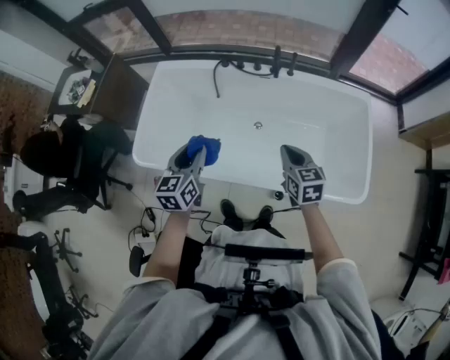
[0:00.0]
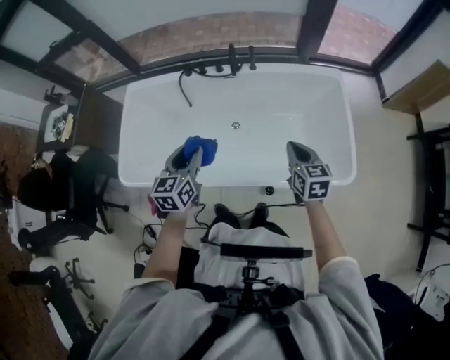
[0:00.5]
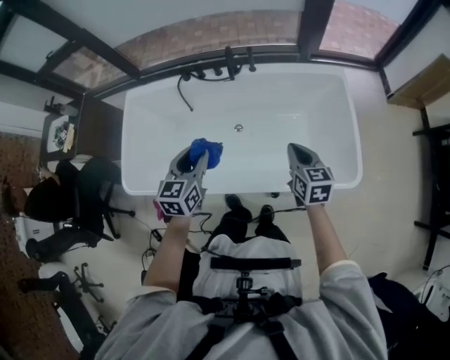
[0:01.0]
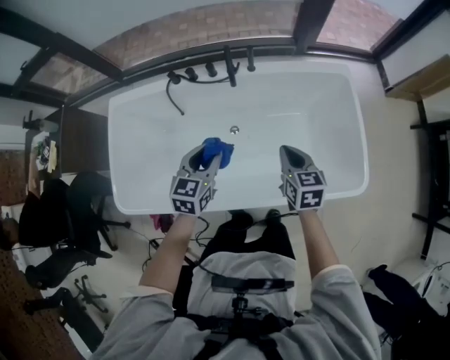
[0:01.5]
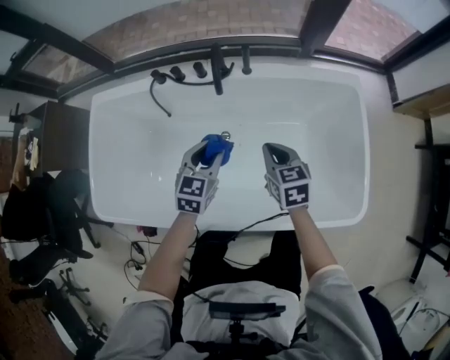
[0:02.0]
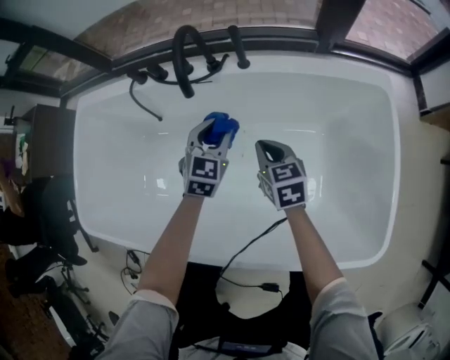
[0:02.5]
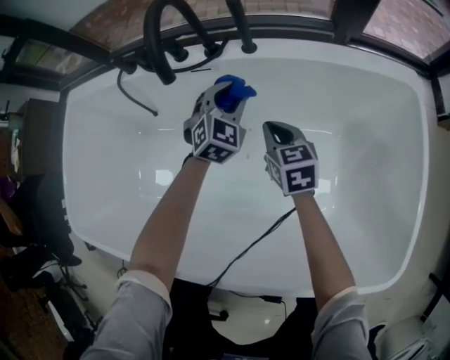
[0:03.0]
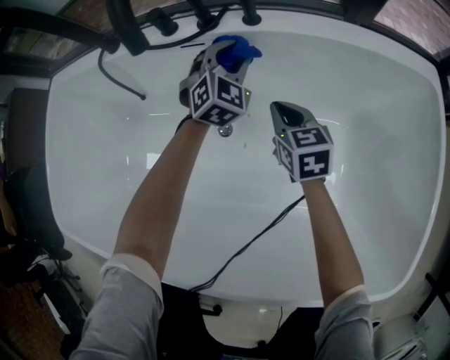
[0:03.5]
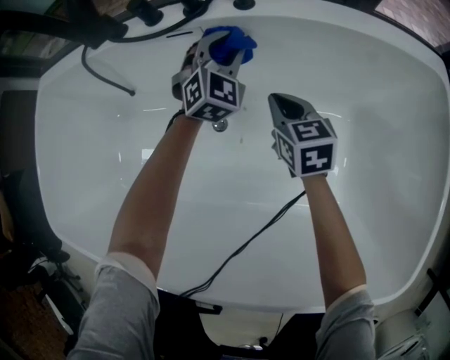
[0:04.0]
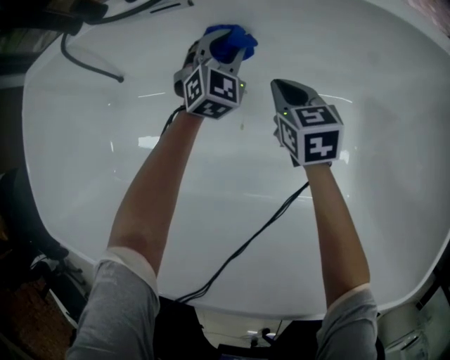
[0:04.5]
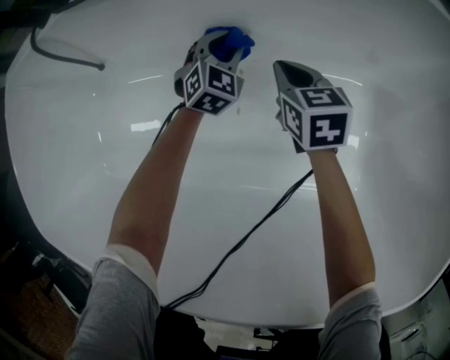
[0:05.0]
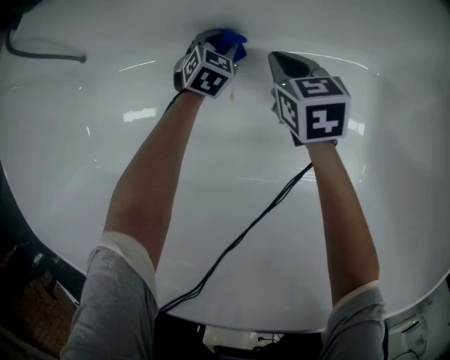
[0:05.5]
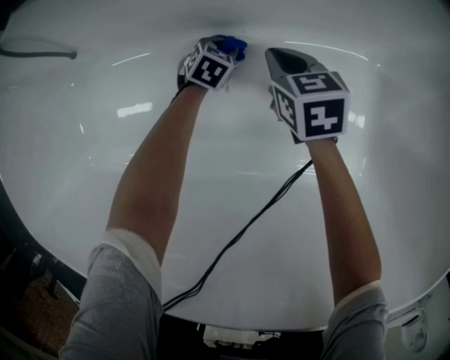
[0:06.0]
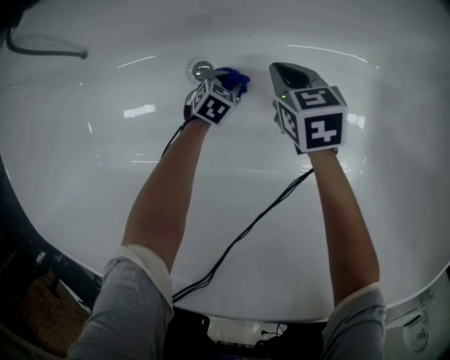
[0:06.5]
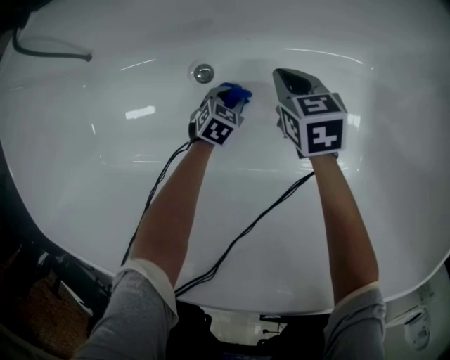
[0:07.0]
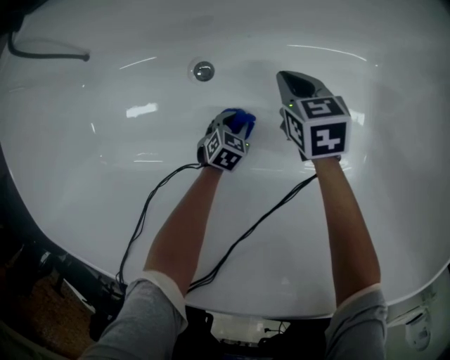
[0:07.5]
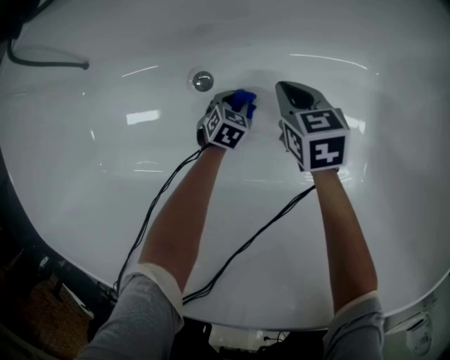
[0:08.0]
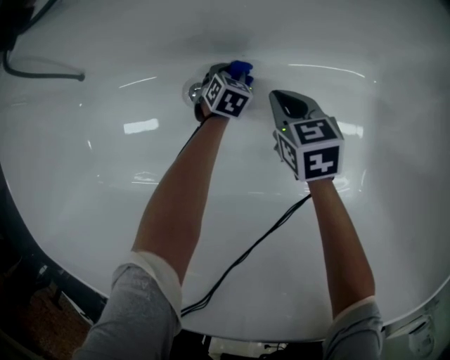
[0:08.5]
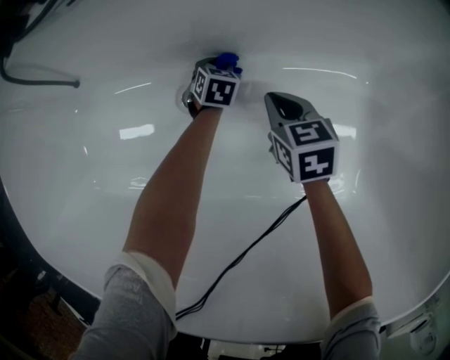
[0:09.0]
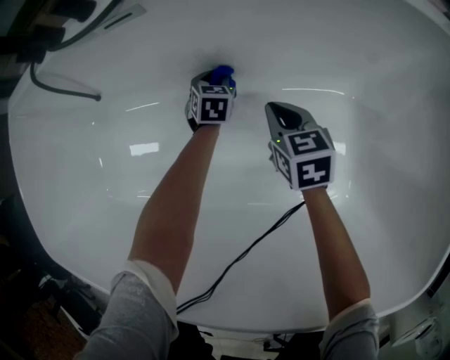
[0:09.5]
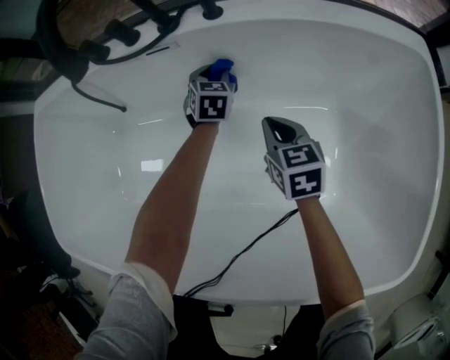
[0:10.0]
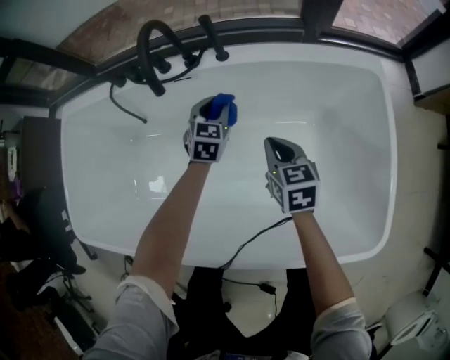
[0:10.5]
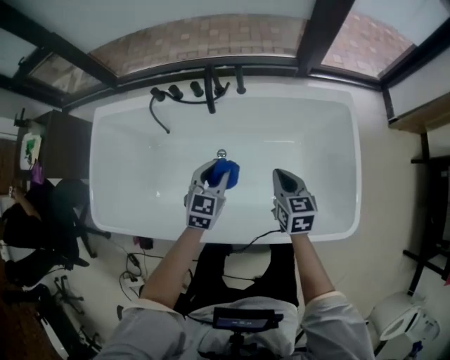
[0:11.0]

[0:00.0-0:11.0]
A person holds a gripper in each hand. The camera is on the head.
0:00.0 to 0:02.0: The right gripper goes some 25 cm forward, downward and to the right; the left gripper travels forward, to the right and downward by about 35 cm, and turns by about 20 degrees.
0:02.0 to 0:03.5: The right gripper heads downward and forward, covering some 35 cm. The left gripper moves forward, downward and to the right, some 40 cm, and turns by roughly 40 degrees.
0:03.5 to 0:05.5: The right gripper travels downward by about 20 cm, while the left gripper goes some 35 cm downward, and turns by approximately 30 degrees.
0:05.5 to 0:07.5: The left gripper moves backward, roughly 25 cm, and turns by some 20 degrees, while the right gripper heads backward, covering approximately 5 cm.
0:07.5 to 0:09.0: The left gripper is displaced forward by roughly 25 cm.
0:09.0 to 0:11.0: The grippers both shift upward by approximately 60 cm. The left gripper swivels about 30 degrees.

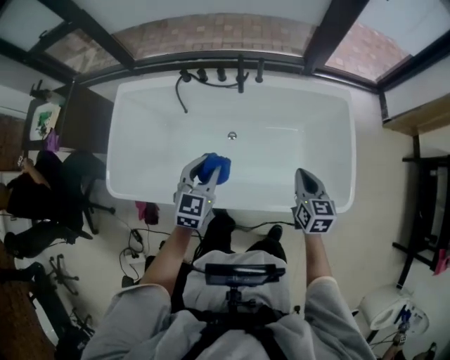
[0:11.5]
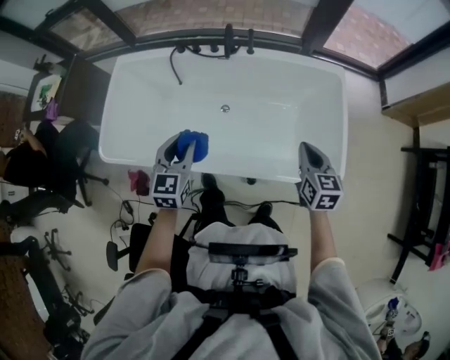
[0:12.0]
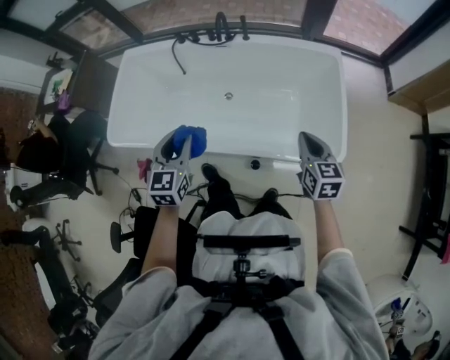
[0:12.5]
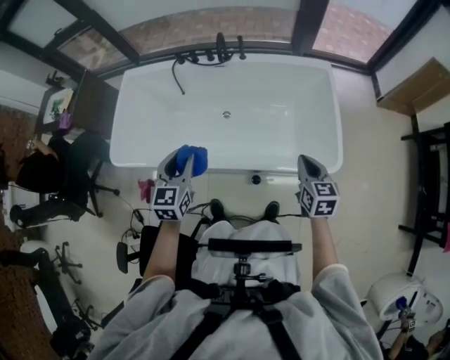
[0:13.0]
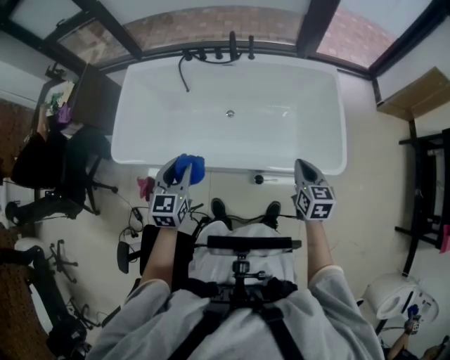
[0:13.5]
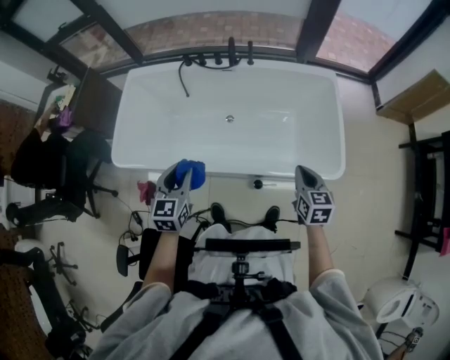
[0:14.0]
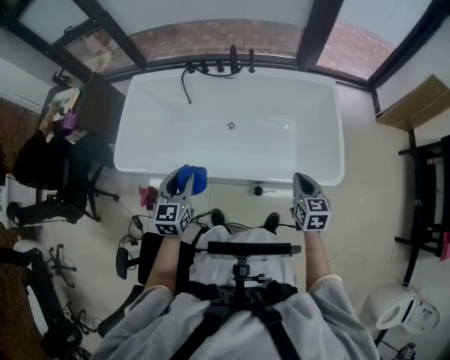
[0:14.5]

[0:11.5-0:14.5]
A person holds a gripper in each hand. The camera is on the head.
0:11.5 to 0:13.0: The left gripper travels backward by some 20 cm; the right gripper goes roughly 20 cm backward and to the right.
0:13.0 to 0:14.5: The two grippers go approximately 5 cm to the left.

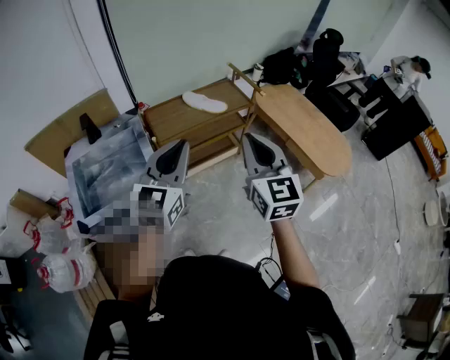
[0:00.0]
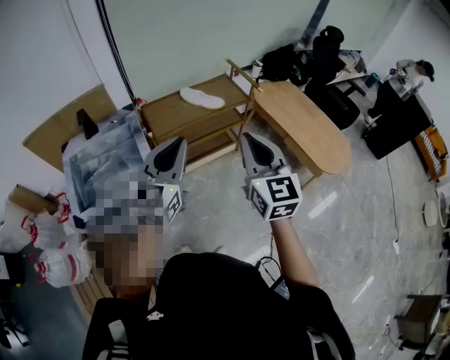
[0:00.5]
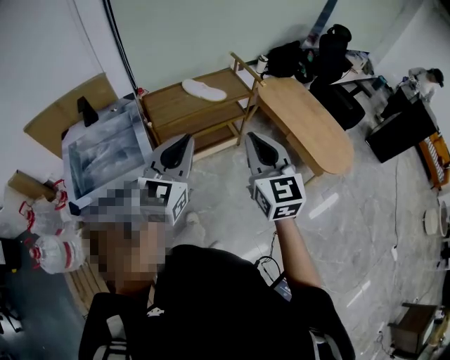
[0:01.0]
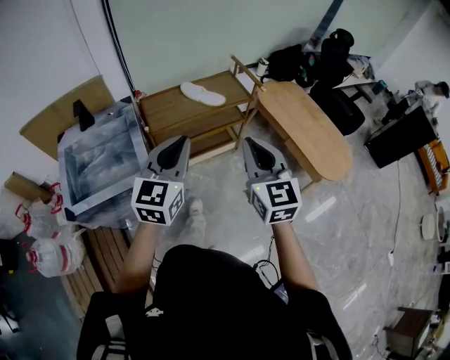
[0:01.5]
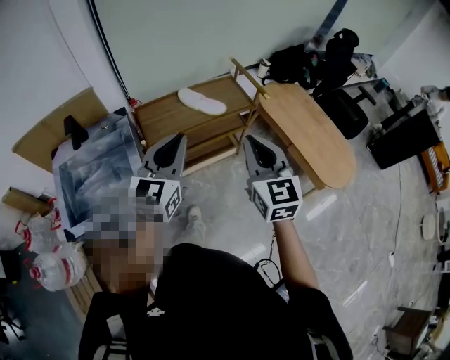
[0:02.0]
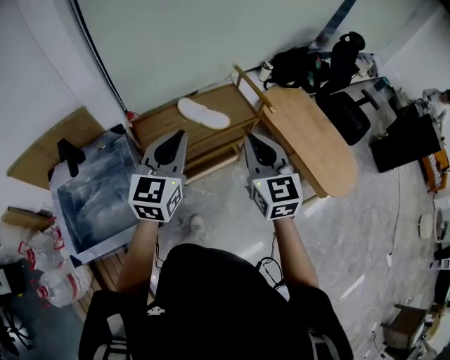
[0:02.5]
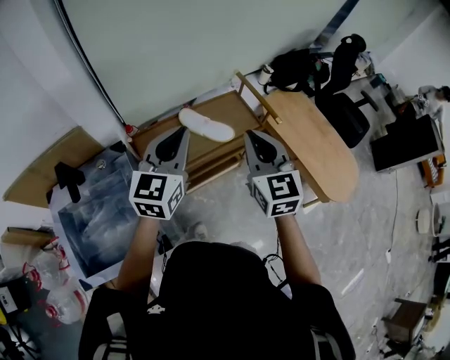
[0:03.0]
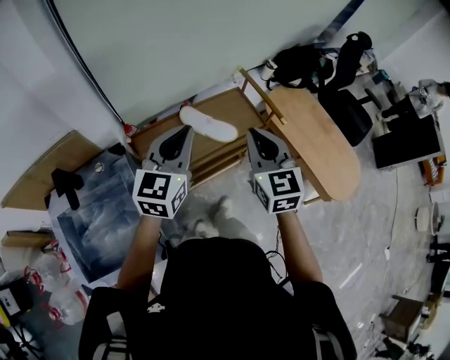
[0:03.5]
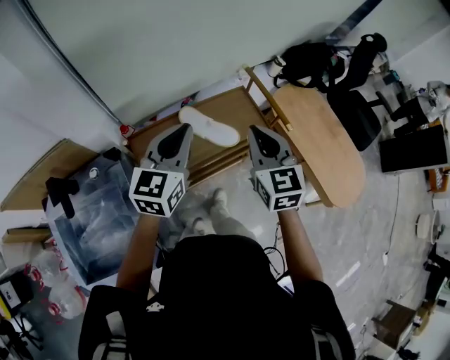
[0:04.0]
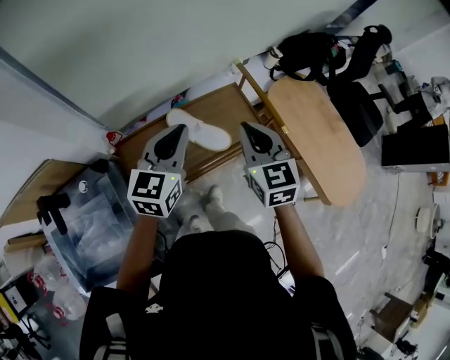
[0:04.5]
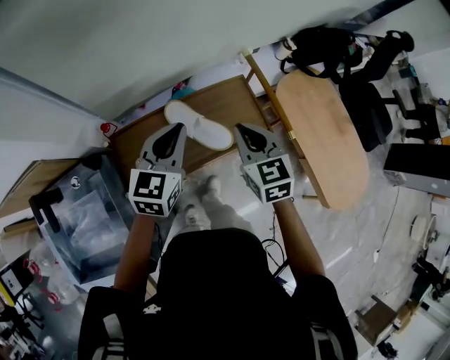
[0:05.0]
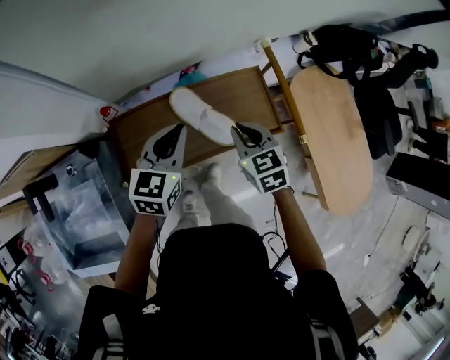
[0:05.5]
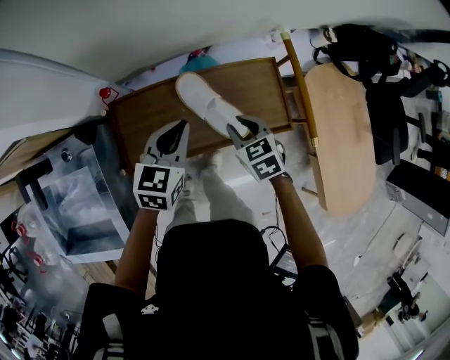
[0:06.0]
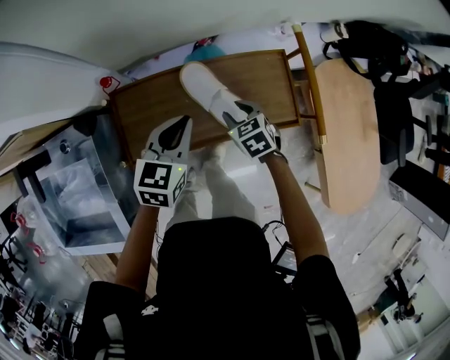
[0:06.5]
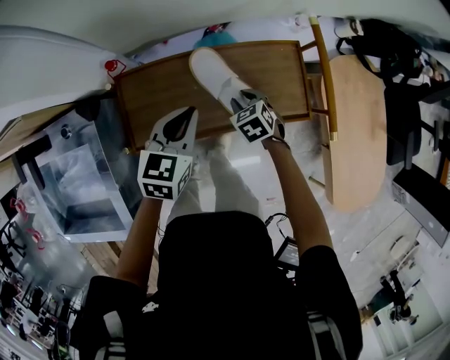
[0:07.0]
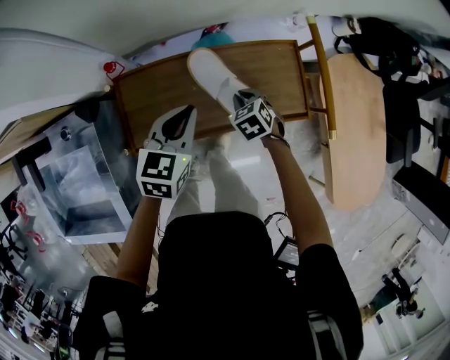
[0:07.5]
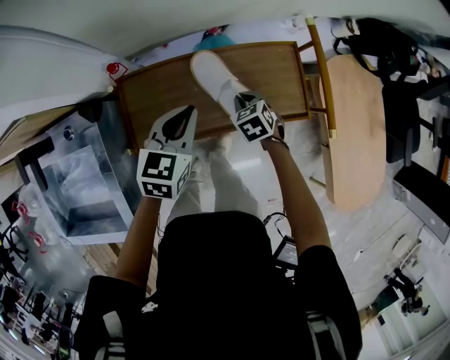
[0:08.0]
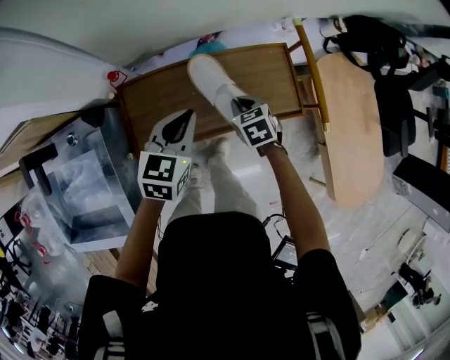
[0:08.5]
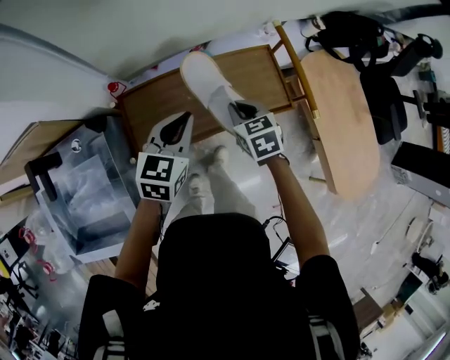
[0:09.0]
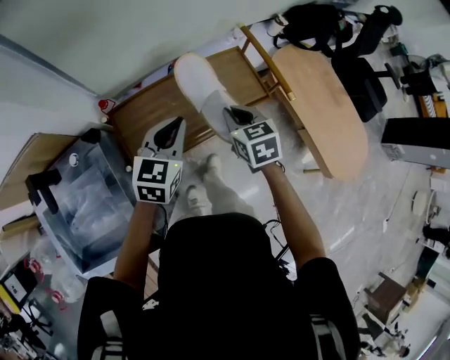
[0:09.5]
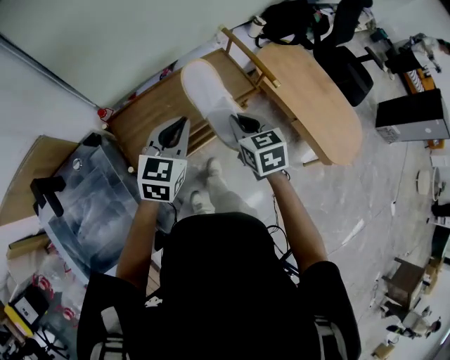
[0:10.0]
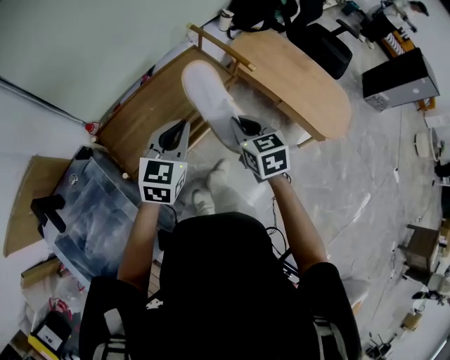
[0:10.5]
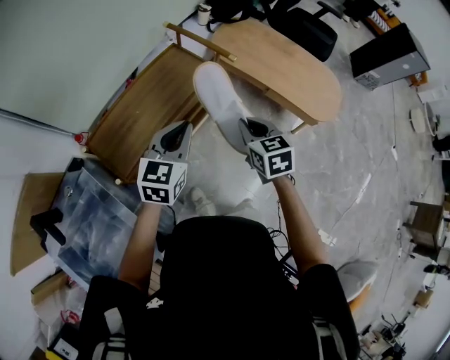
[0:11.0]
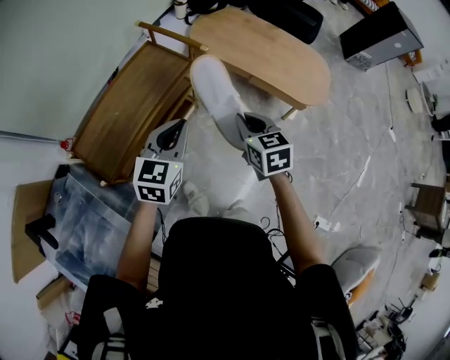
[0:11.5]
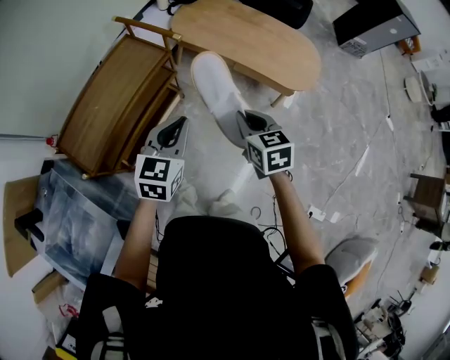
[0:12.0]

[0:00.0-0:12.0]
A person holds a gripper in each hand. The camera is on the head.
0:00.0 to 0:02.0: The left gripper heads forward, covering some 15 cm. Meanwhile the right gripper goes some 15 cm forward and downward.
0:02.0 to 0:04.0: The two grippers go roughly 35 cm forward.
0:04.0 to 0:06.0: Both grippers move downward and forward, roughly 30 cm. The left gripper swivels approximately 30 degrees. The right gripper points its fingers some 30 degrees further downward, and opens its fingers.
0:06.0 to 0:08.0: The right gripper heads downward, covering about 10 cm.
0:08.0 to 0:10.0: The right gripper shifts approximately 30 cm upward and backward, and changes its angle by approximately 40 degrees; the left gripper goes some 20 cm backward and upward, and turns by about 30 degrees.
0:10.0 to 0:12.0: The left gripper heads to the right, covering roughly 30 cm, and changes its angle by approximately 20 degrees. The right gripper moves to the right and backward, some 35 cm, and changes its angle by roughly 30 degrees.
